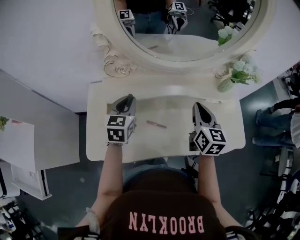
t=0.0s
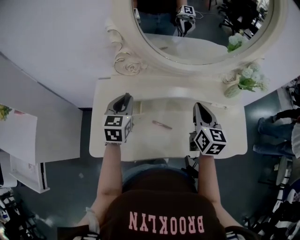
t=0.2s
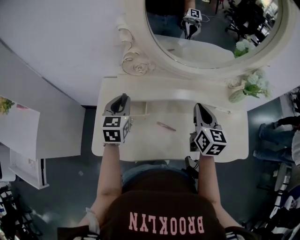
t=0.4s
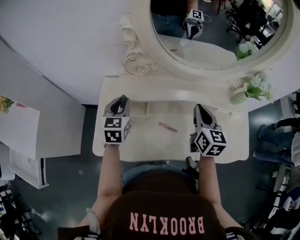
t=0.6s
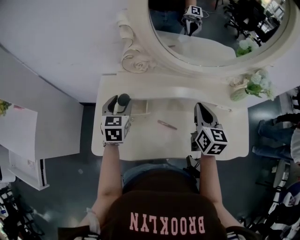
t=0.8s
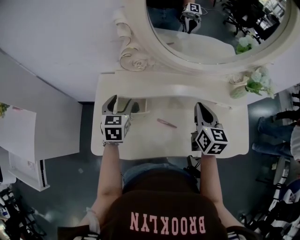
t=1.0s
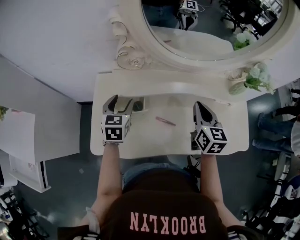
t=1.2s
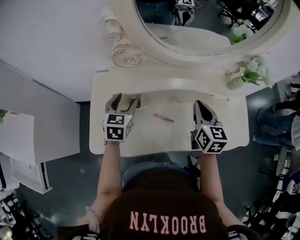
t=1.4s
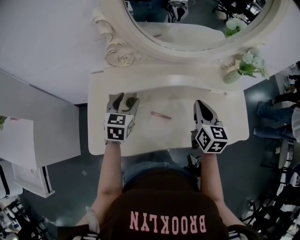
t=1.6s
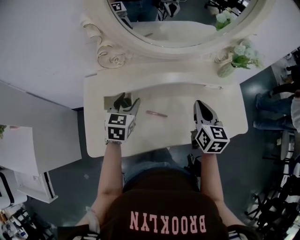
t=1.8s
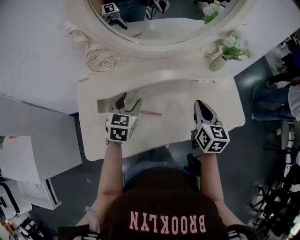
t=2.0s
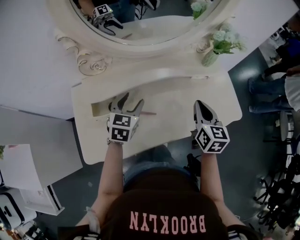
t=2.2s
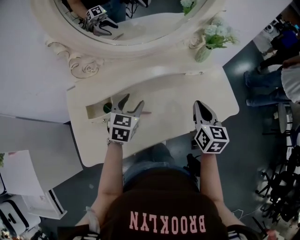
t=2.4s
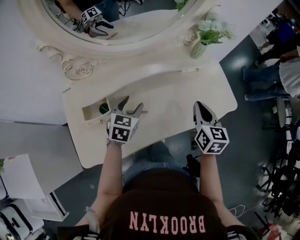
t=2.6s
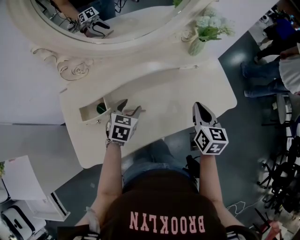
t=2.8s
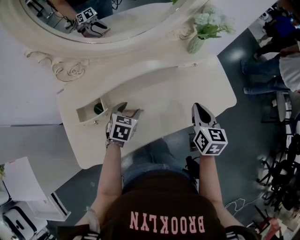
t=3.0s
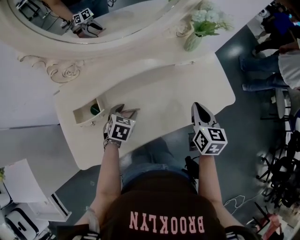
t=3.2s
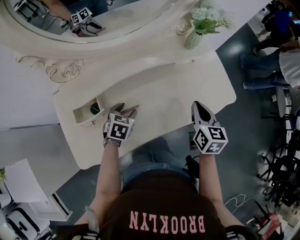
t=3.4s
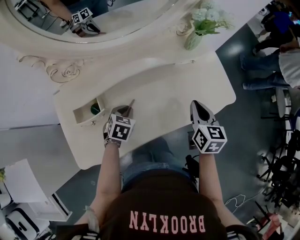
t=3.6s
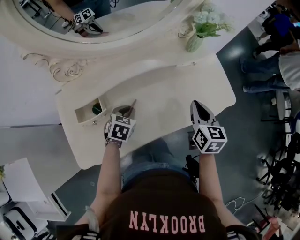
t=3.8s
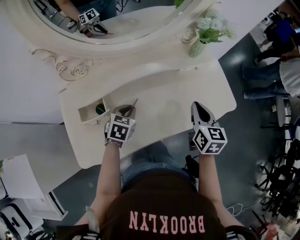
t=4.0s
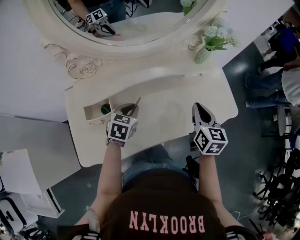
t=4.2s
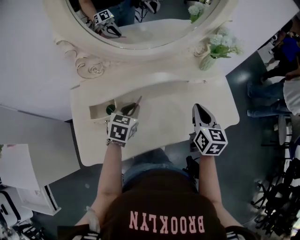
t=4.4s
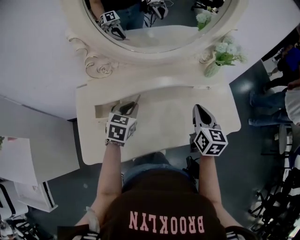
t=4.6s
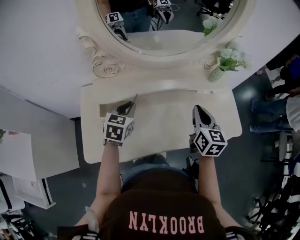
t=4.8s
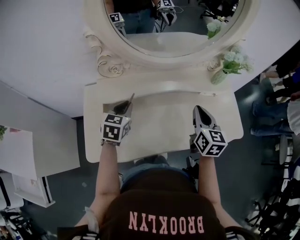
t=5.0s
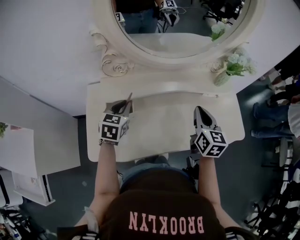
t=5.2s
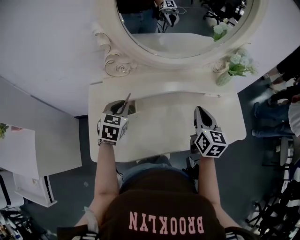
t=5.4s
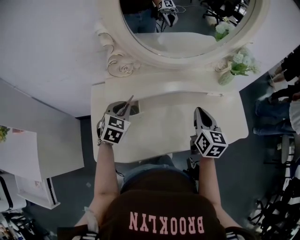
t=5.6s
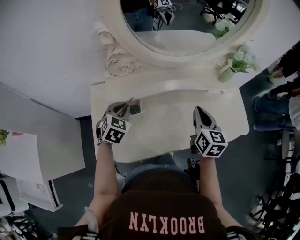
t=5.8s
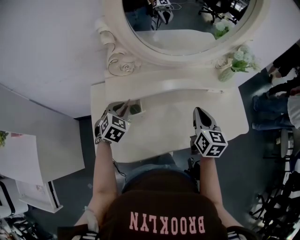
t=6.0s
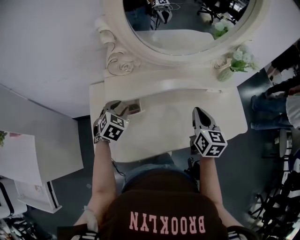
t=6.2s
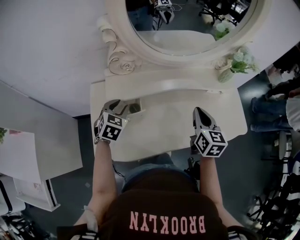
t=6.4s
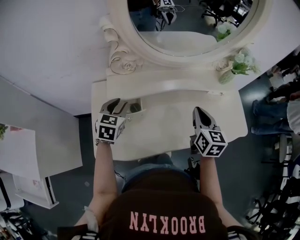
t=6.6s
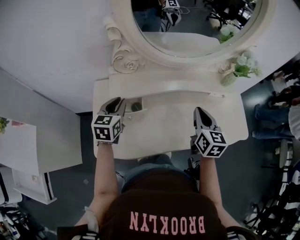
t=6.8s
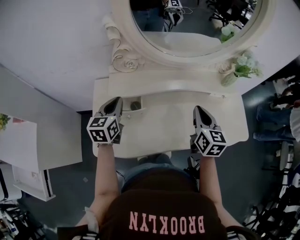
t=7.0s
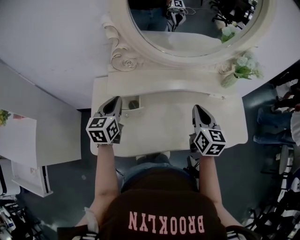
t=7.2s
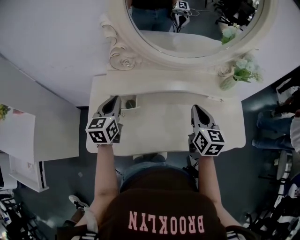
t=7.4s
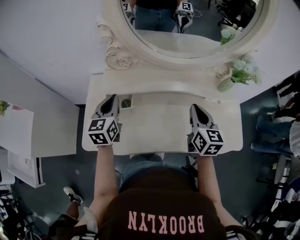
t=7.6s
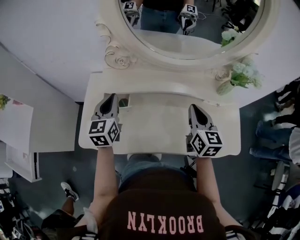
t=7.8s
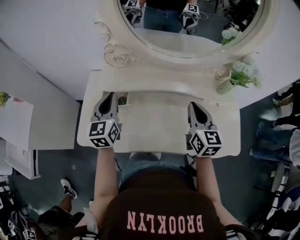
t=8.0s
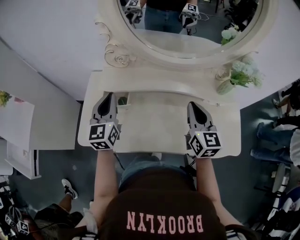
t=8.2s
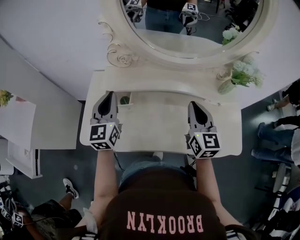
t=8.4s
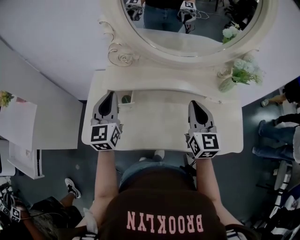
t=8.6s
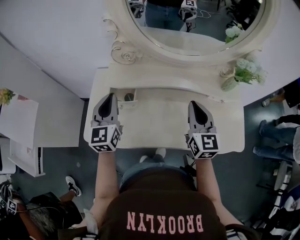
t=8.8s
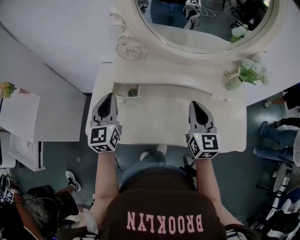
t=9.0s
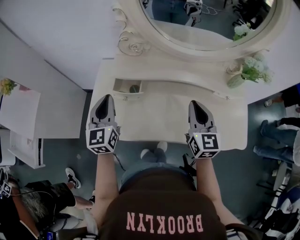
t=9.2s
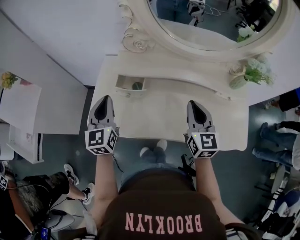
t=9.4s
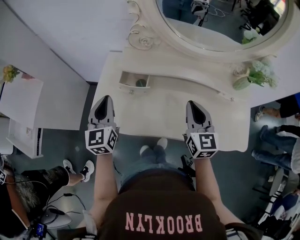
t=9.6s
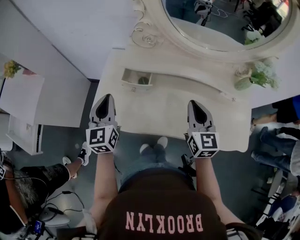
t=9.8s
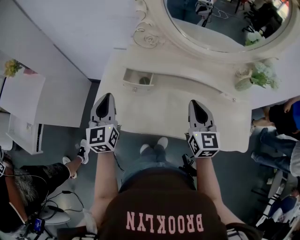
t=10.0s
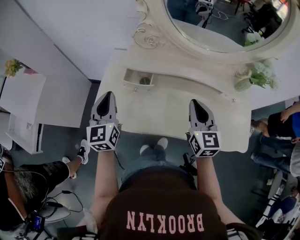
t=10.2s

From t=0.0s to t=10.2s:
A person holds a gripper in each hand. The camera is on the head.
From t=0.0s to t=1.4s: The right gripper shifts by about 5 cm. The left gripper shifts about 5 cm to the left, and opens up.
From t=1.4s to t=3.0s: The left gripper moves approximately 20 cm, and changes its angle by approximately 30 degrees, while the right gripper changes place by roughly 20 cm, and changes its angle by some 20 degrees.
From t=3.0s to t=4.4s: The left gripper heads upward, covering approximately 5 cm, and closes. Meanwhile the right gripper goes some 5 cm to the left.
From t=4.4s to t=5.8s: Both grippers travel together to the left, some 15 cm. The left gripper changes its angle by approximately 20 degrees.
From t=5.8s to t=7.2s: The left gripper goes approximately 5 cm upward, changes its angle by approximately 40 degrees, and opens and closes again.
From t=7.2s to t=8.8s: The right gripper changes its angle by roughly 20 degrees, while the left gripper moves upward and backward, approximately 10 cm, and changes its angle by roughly 20 degrees.
From t=8.8s to t=10.2s: The left gripper shifts about 10 cm to the left and backward; the right gripper moves to the left, roughly 5 cm.

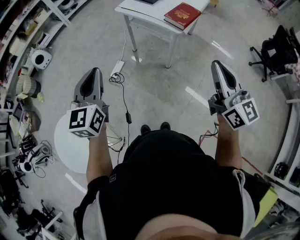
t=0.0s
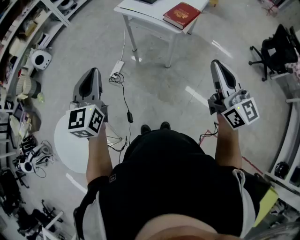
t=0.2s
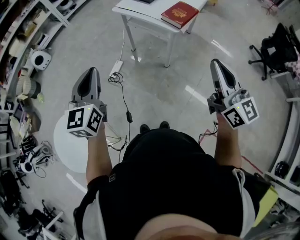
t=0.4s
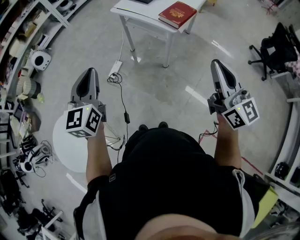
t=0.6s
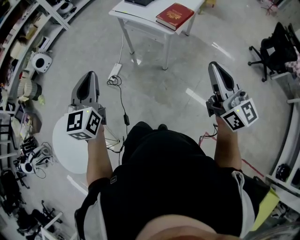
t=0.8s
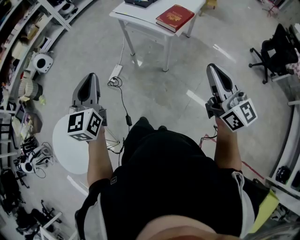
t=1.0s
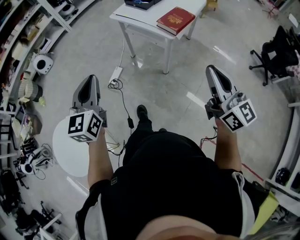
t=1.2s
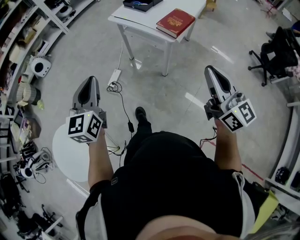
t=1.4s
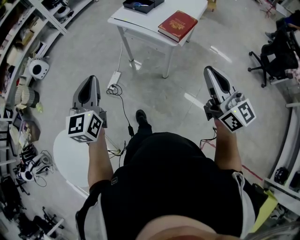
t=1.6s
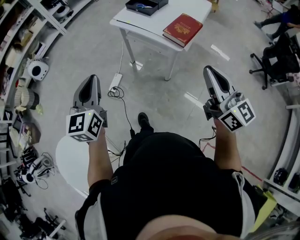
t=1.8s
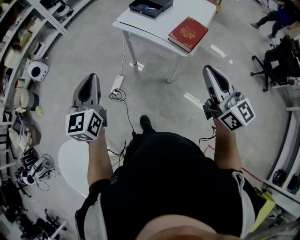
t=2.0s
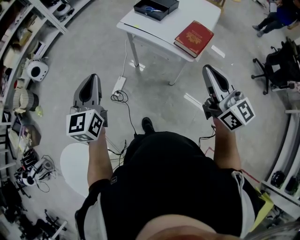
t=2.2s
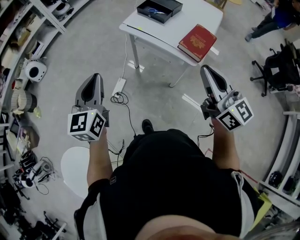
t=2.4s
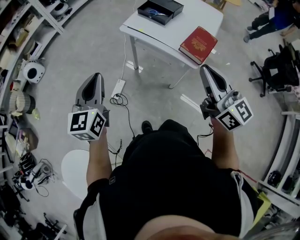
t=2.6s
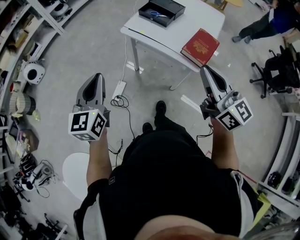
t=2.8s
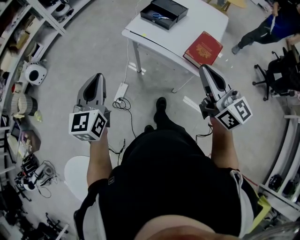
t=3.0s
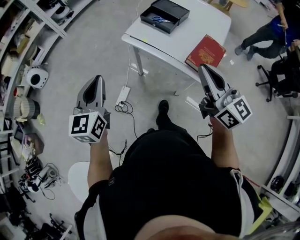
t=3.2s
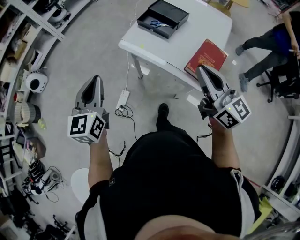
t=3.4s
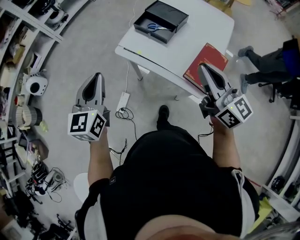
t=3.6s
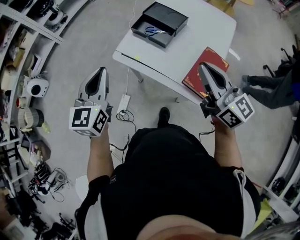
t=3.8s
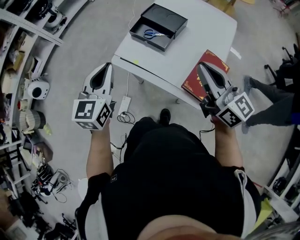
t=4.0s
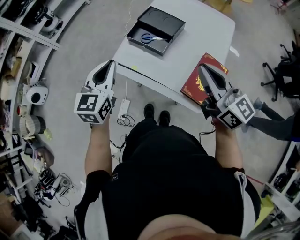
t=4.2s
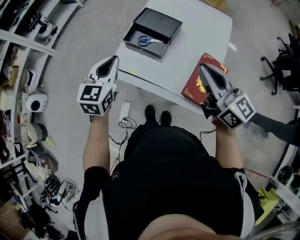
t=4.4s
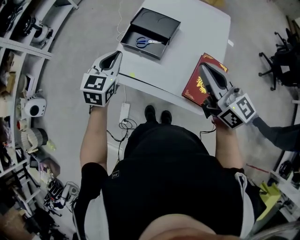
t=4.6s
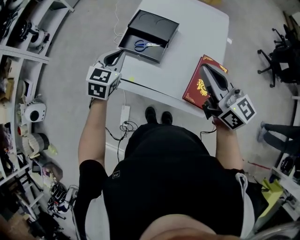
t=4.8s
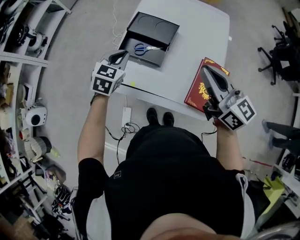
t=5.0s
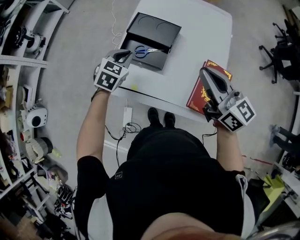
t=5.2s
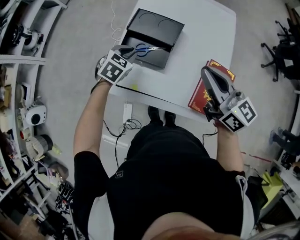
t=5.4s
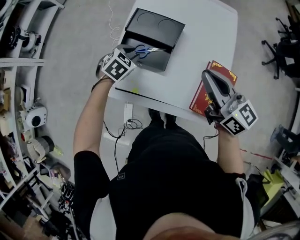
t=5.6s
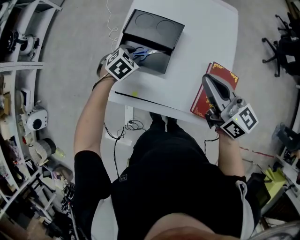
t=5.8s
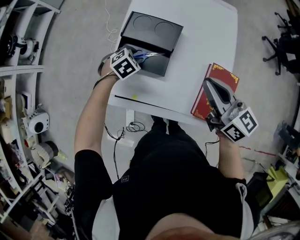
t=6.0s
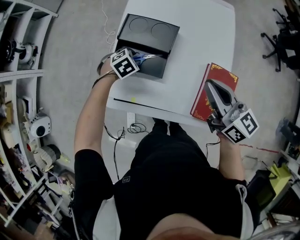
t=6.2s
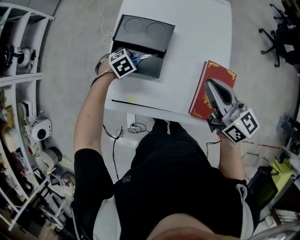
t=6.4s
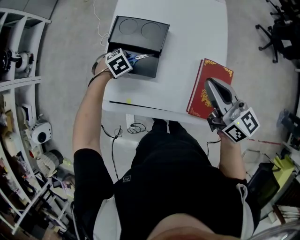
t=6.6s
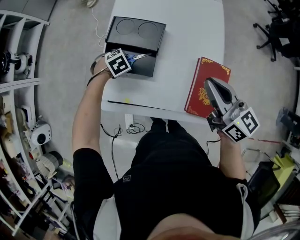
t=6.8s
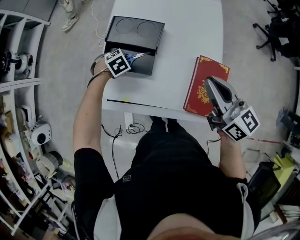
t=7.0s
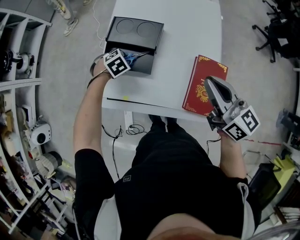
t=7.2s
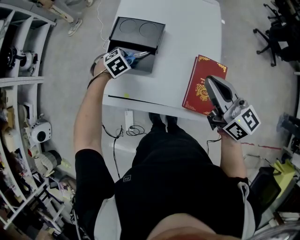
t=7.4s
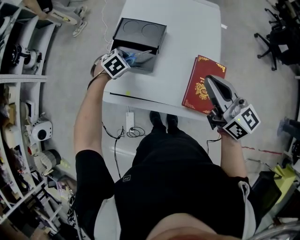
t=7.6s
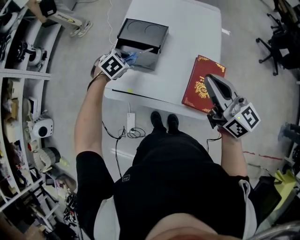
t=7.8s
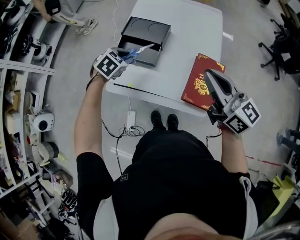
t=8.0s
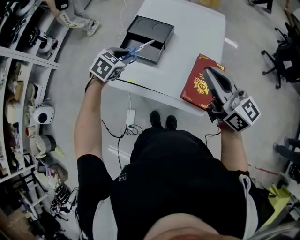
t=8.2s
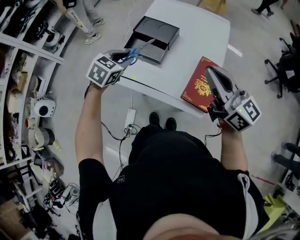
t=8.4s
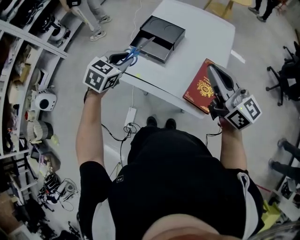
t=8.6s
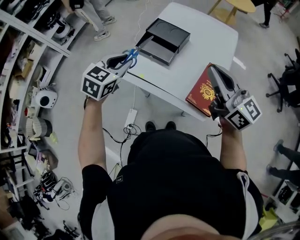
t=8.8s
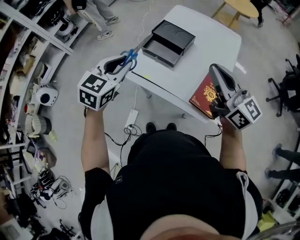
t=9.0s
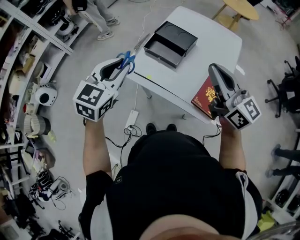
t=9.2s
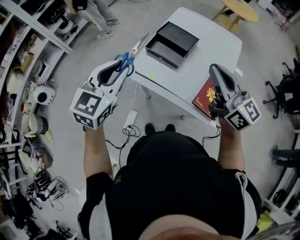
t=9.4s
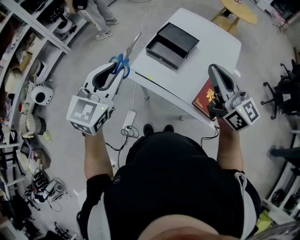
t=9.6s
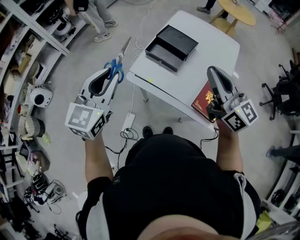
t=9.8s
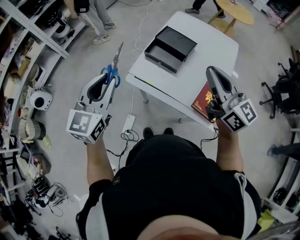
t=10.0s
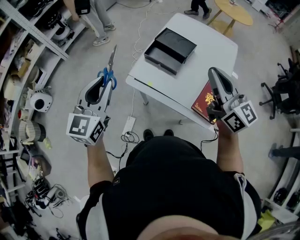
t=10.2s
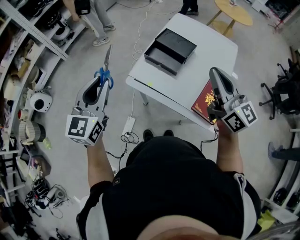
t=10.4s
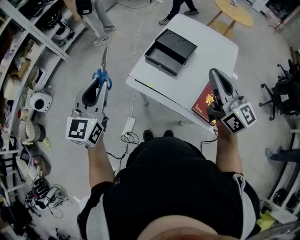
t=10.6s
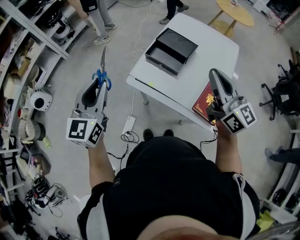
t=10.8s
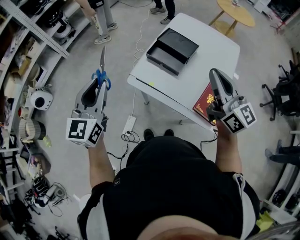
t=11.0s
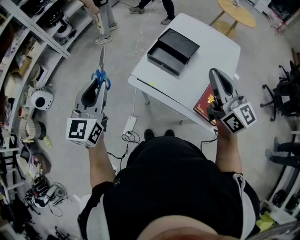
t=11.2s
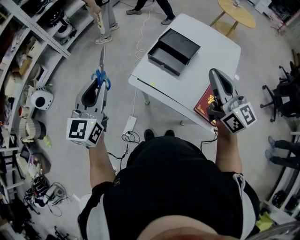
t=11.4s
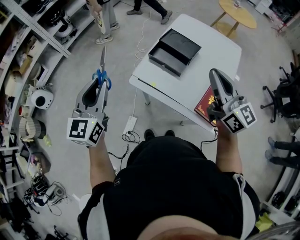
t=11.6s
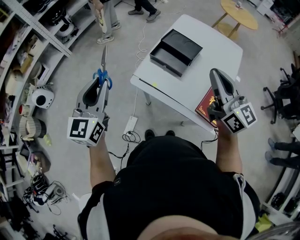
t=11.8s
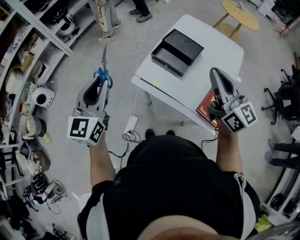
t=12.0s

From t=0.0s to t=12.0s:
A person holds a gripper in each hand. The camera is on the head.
From t=0.0s to t=1.6s: The grippers both shift forward by some 10 cm.
From t=1.6s to t=3.0s: Both grippers move forward, approximately 30 cm.
From t=3.0s to t=4.4s: The two grippers go approximately 35 cm forward and to the right. The left gripper turns by some 20 degrees.
From t=4.4s to t=6.0s: The left gripper shifts some 35 cm downward and forward, tilts its fingers about 50 degrees downward, and opens its fingers; the right gripper goes roughly 15 cm forward and downward.
From t=6.0s to t=7.6s: The right gripper moves about 10 cm; the left gripper changes place by roughly 5 cm.
From t=7.6s to t=9.0s: The right gripper goes some 15 cm upward, backward and to the left, and turns by roughly 20 degrees, while the left gripper shifts roughly 35 cm upward and backward, and tips its fingers upward by roughly 40 degrees.
From t=9.0s to t=10.4s: The left gripper heads to the left, covering roughly 15 cm, and rotates some 30 degrees, while the right gripper goes some 5 cm to the left.
From t=10.4s to t=12.0s: The grippers move only a little.

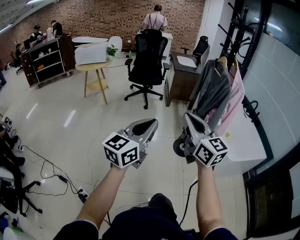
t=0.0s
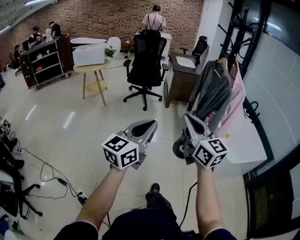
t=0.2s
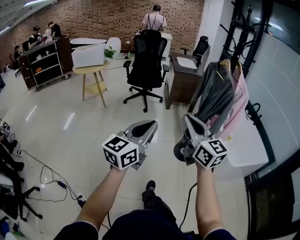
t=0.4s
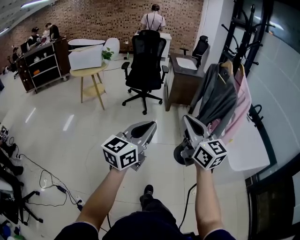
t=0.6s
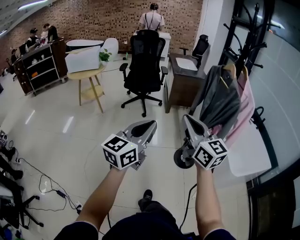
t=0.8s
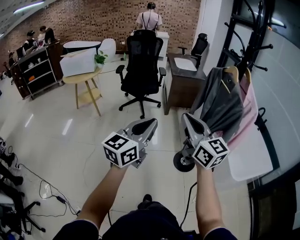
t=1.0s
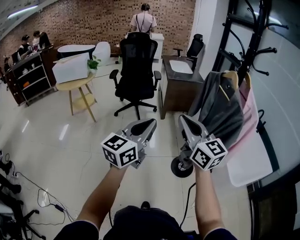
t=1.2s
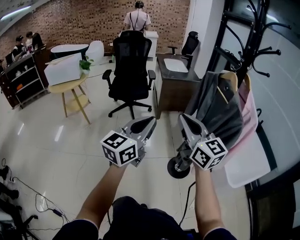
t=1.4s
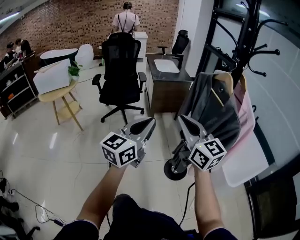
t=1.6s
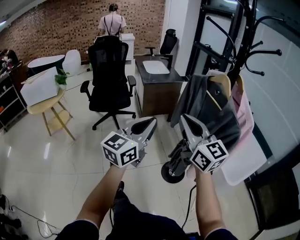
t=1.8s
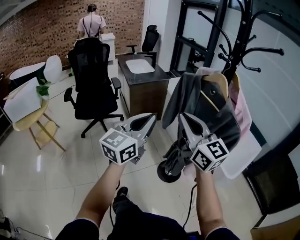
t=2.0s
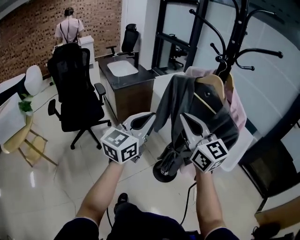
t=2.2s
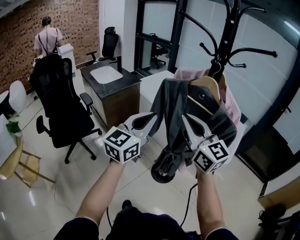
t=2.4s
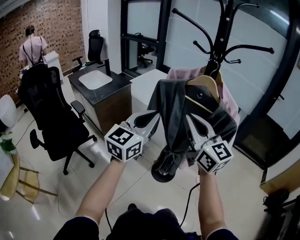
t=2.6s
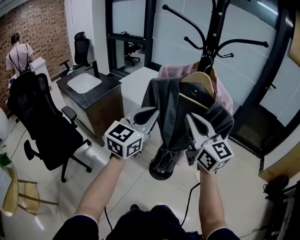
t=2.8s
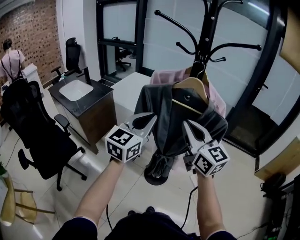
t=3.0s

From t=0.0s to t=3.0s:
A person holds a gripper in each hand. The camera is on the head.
From t=0.0s to t=1.6s: The grippers both shift forward by some 40 cm.
From t=1.6s to t=3.0s: The left gripper ends up some 30 cm from where it was, and rotates about 50 degrees. Meanwhile the right gripper changes place by about 20 cm, and rotates roughly 60 degrees.
